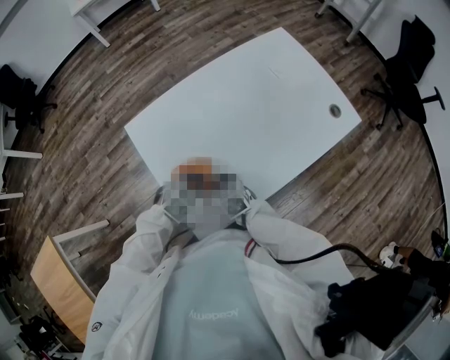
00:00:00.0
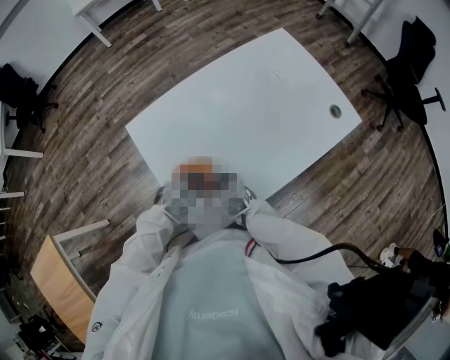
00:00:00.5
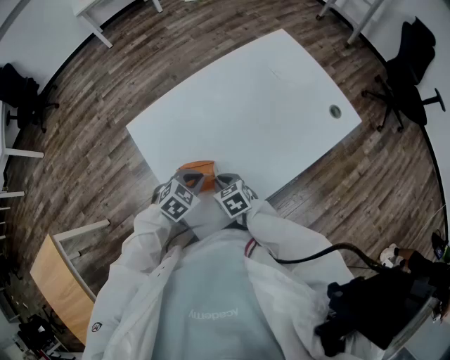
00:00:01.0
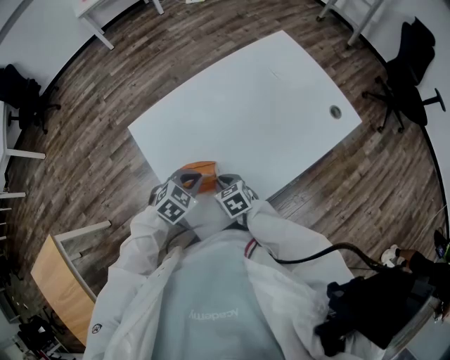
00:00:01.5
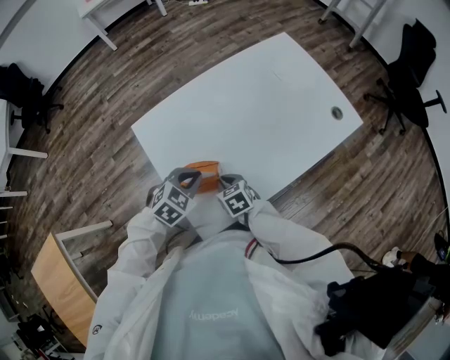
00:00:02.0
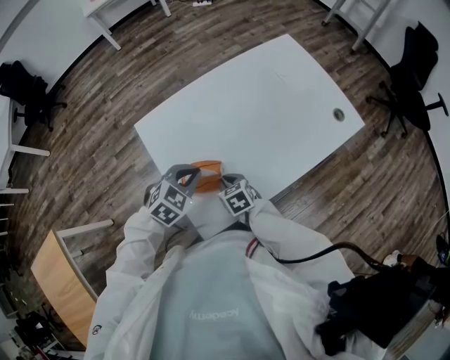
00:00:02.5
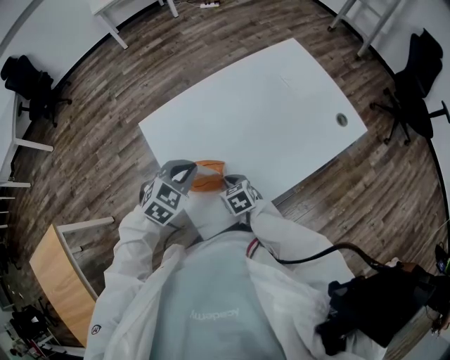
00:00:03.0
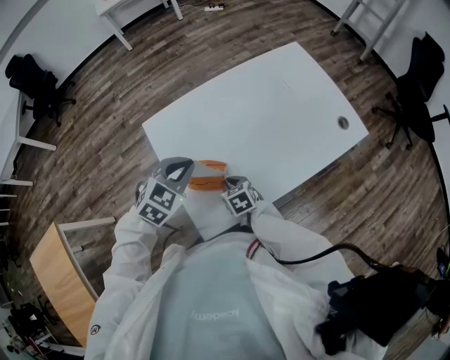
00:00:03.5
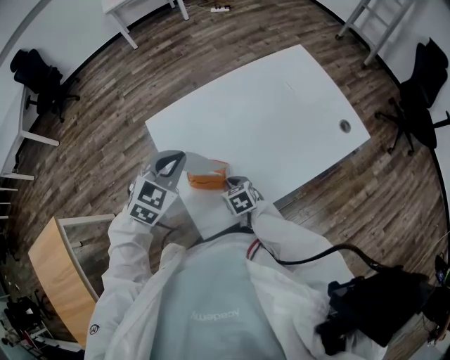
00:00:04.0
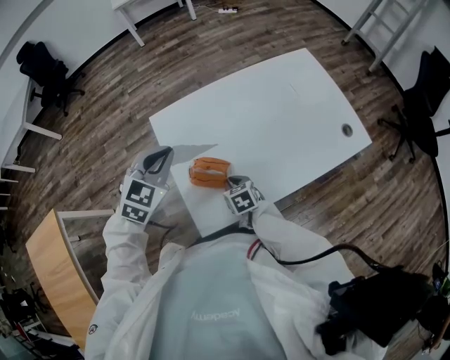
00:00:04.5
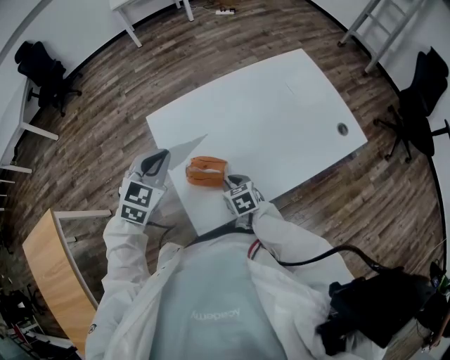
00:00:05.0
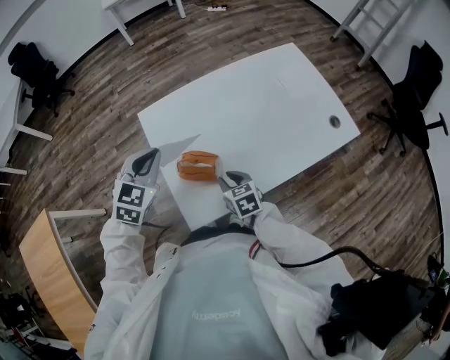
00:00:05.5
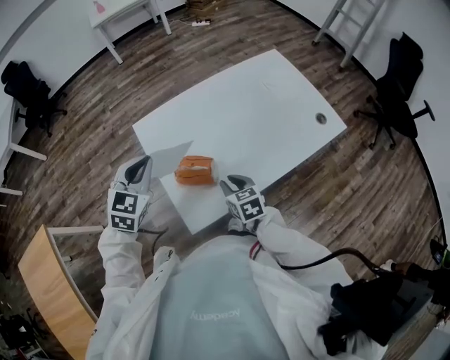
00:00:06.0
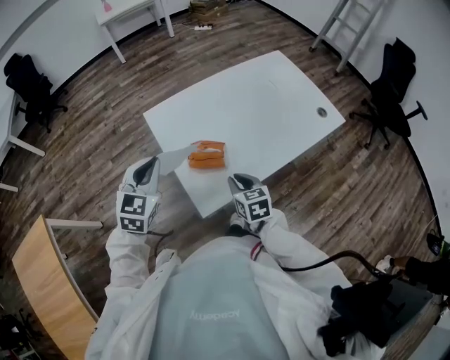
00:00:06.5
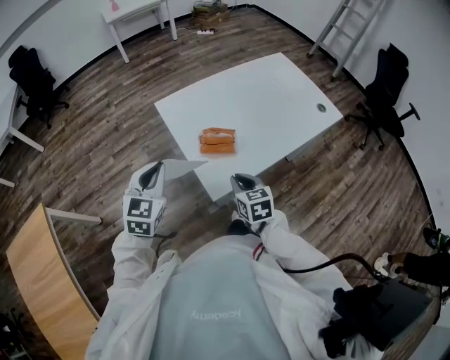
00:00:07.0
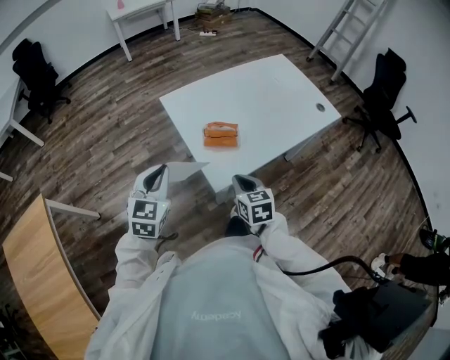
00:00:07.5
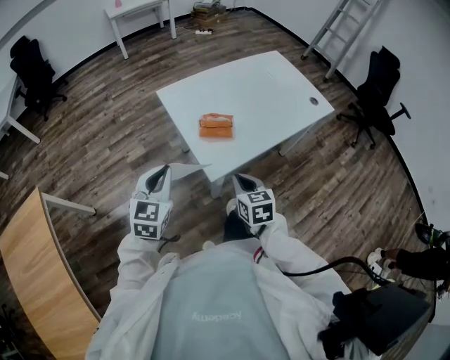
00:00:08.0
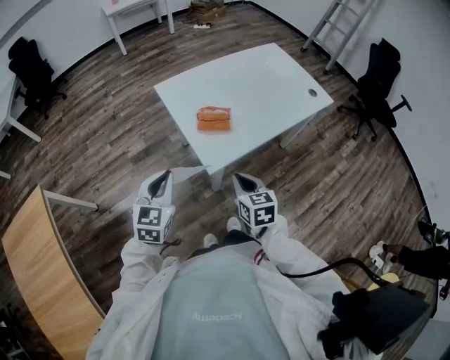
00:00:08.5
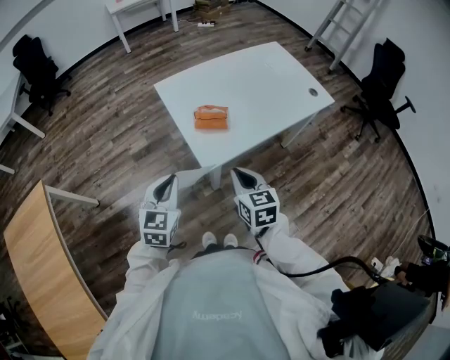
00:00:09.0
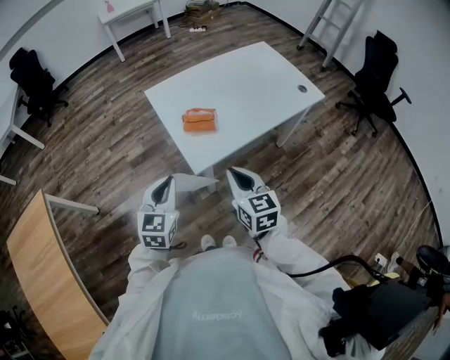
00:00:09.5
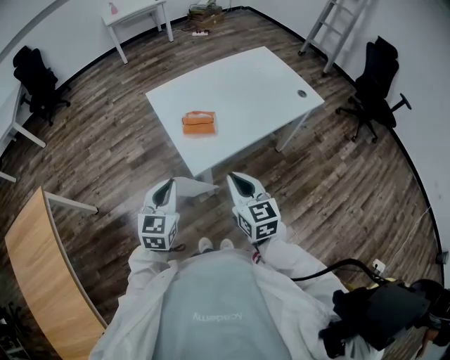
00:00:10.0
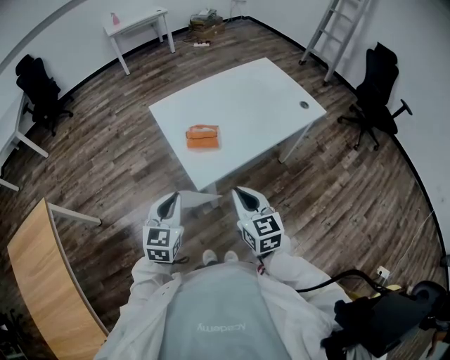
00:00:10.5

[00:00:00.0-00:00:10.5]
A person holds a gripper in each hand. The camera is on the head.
00:00:00.0 to 00:00:02.0: The left gripper heads upward, covering approximately 5 cm.
00:00:02.0 to 00:00:04.0: The left gripper is displaced upward by approximately 15 cm, and swivels roughly 20 degrees.
00:00:04.0 to 00:00:06.5: The right gripper moves upward and backward, roughly 10 cm; the left gripper is displaced to the left and backward by roughly 10 cm, and turns by some 20 degrees.
00:00:06.5 to 00:00:08.5: Both grippers move backward, approximately 15 cm.
00:00:08.5 to 00:00:10.5: The left gripper travels to the right by approximately 5 cm. Meanwhile the right gripper heads upward, covering about 5 cm.

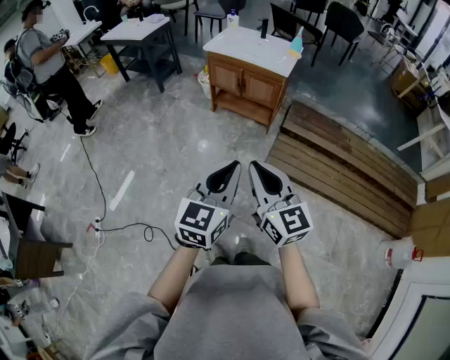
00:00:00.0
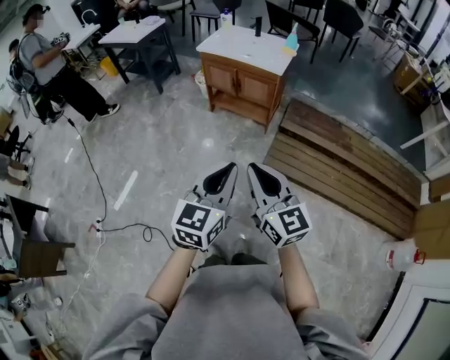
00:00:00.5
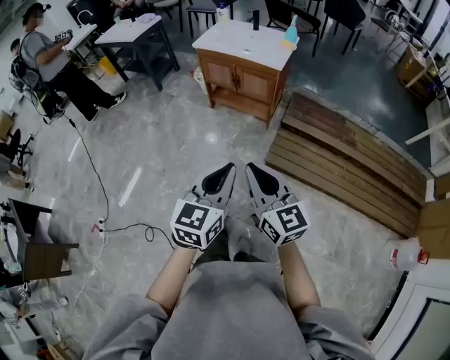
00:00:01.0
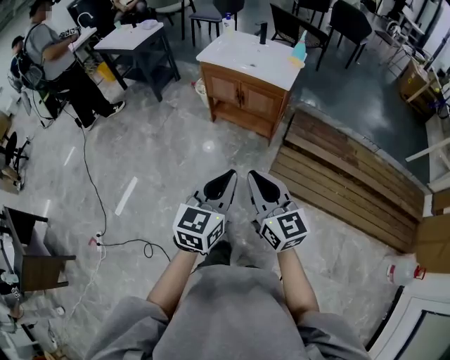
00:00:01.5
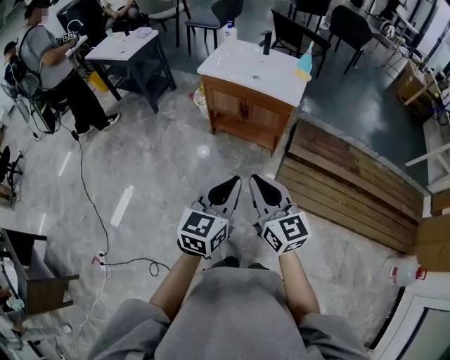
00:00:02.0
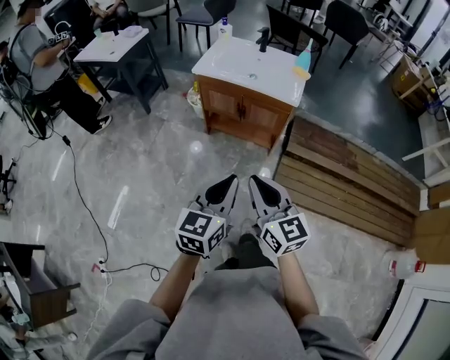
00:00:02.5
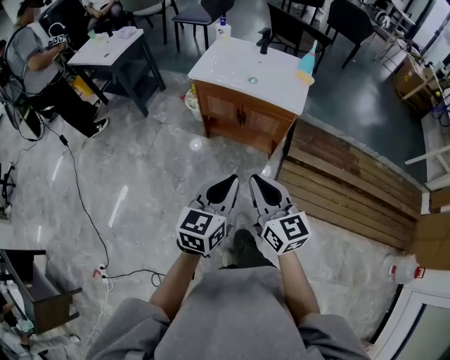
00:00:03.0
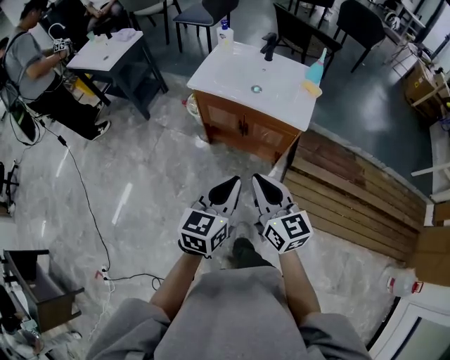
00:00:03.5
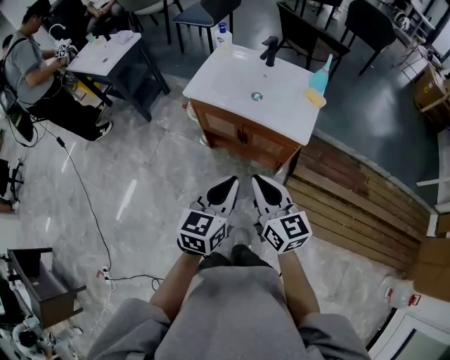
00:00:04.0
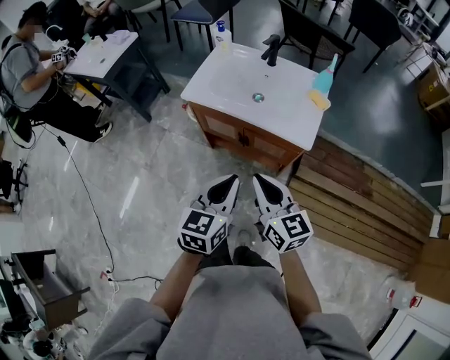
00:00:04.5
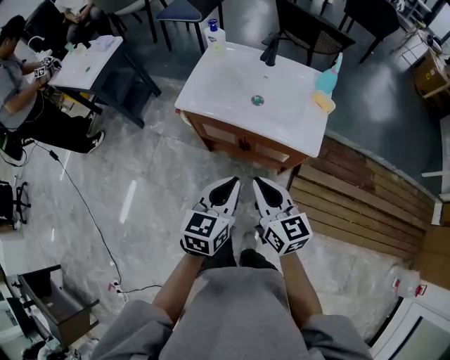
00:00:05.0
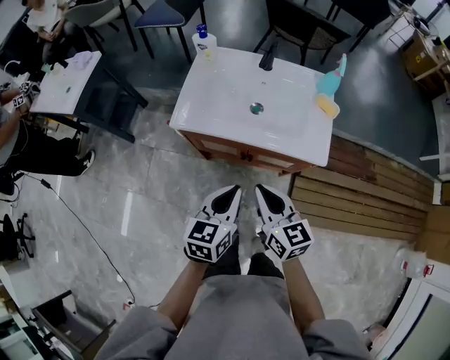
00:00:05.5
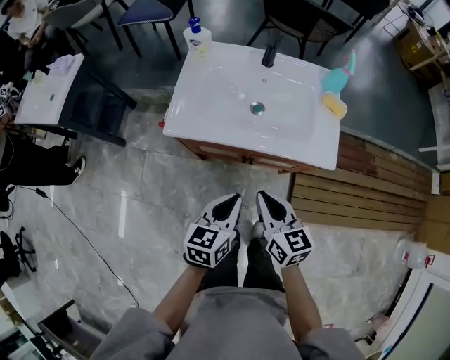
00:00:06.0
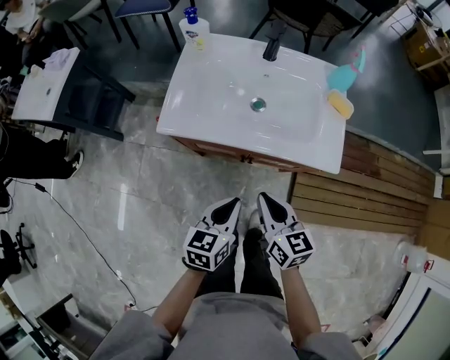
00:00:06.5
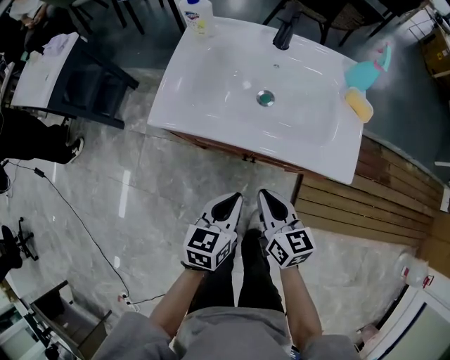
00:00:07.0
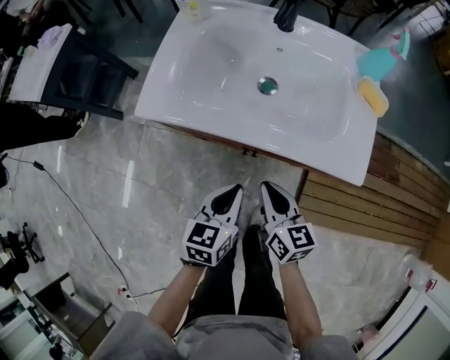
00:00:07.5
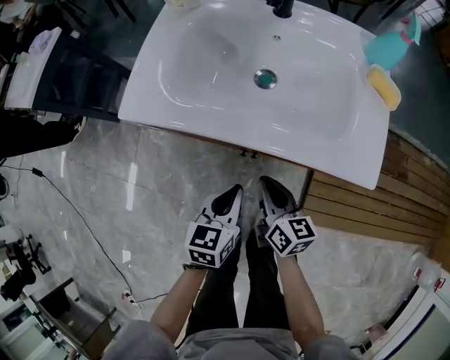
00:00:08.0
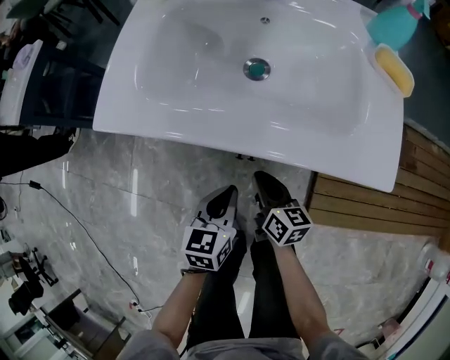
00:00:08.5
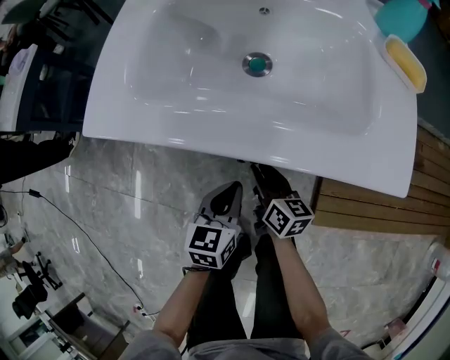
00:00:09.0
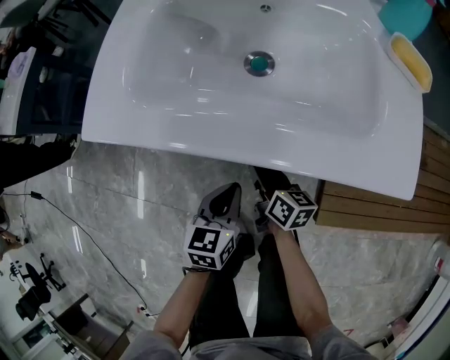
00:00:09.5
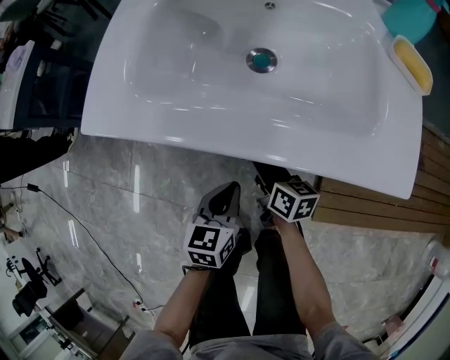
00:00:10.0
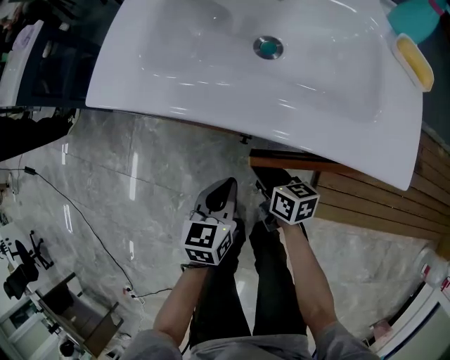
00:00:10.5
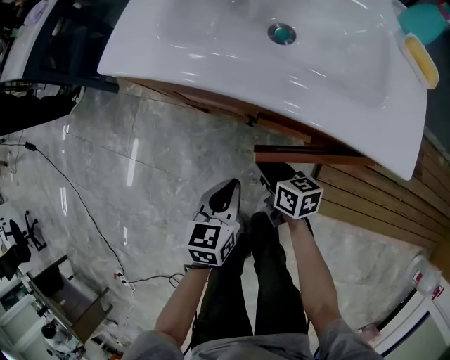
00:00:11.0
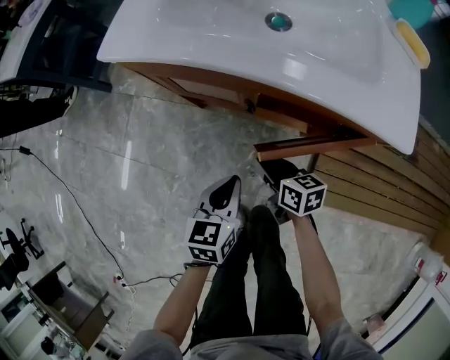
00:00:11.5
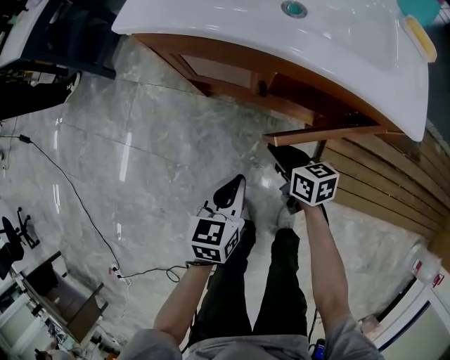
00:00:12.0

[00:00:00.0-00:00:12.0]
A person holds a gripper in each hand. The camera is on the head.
00:00:00.0 to 00:00:02.0: Both grippers move forward, about 25 cm.
00:00:02.0 to 00:00:04.0: Both grippers move forward, approximately 30 cm.
00:00:04.0 to 00:00:06.0: Both grippers move forward, downward and to the left, approximately 25 cm. The left gripper changes its angle by some 20 degrees. Meanwhile the right gripper swivels roughly 20 degrees.
00:00:06.0 to 00:00:08.0: The two grippers go approximately 20 cm downward.
00:00:08.0 to 00:00:10.0: Both grippers move downward, some 10 cm.
00:00:10.0 to 00:00:12.0: Both grippers travel together backward, approximately 15 cm. The right gripper swivels about 20 degrees.

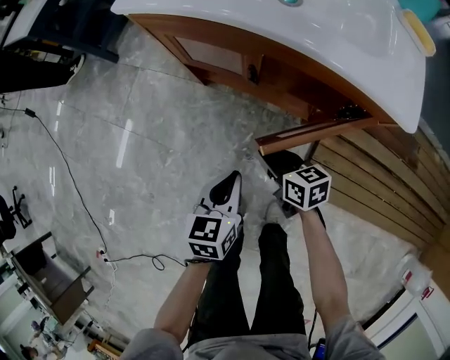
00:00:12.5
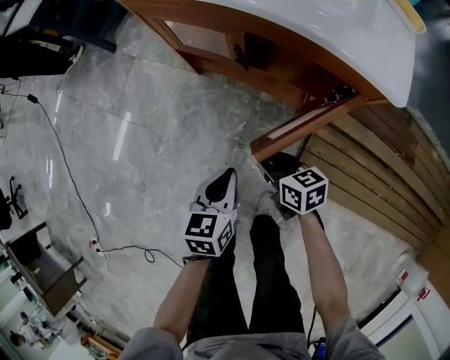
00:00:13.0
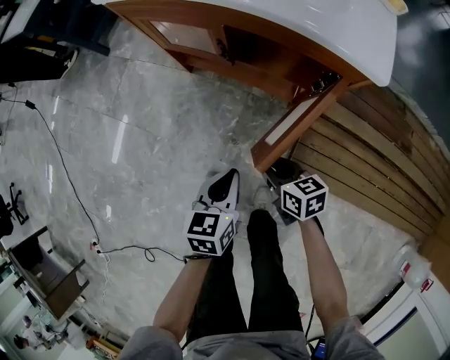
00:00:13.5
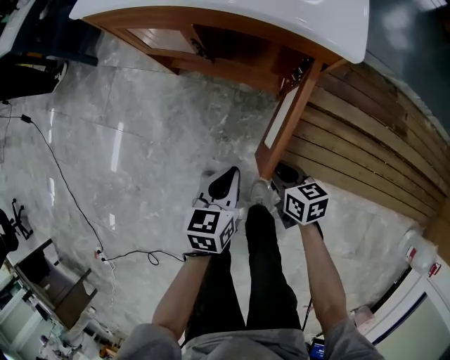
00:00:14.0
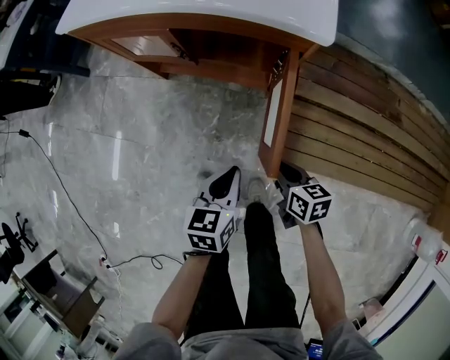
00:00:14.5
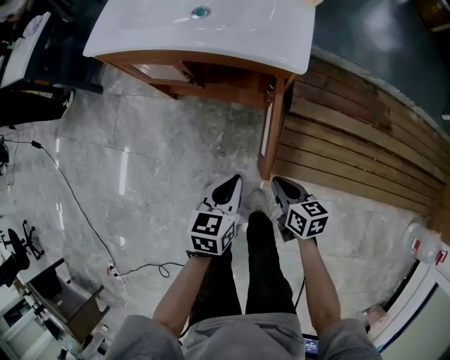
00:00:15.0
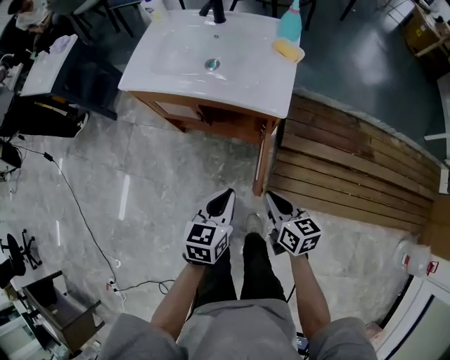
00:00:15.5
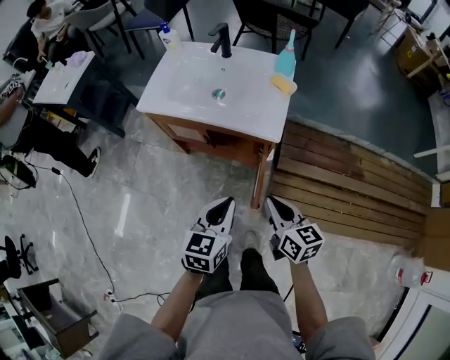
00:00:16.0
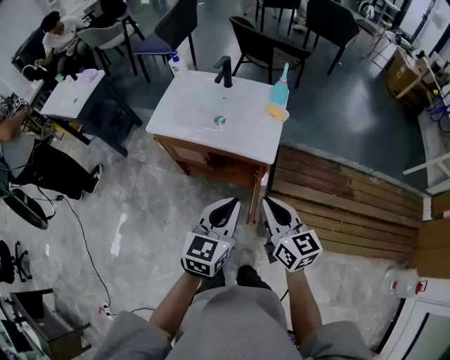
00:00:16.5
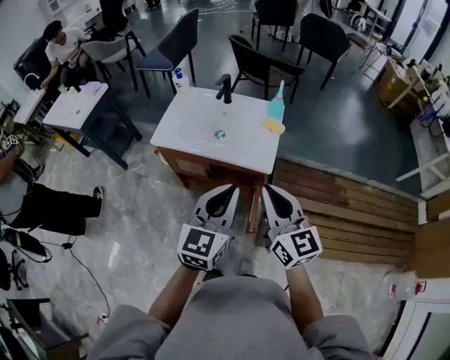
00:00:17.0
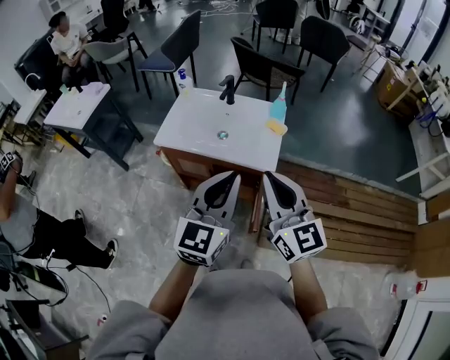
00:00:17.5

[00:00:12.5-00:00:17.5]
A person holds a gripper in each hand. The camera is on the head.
00:00:12.5 to 00:00:15.0: The right gripper travels backward, to the right and upward by approximately 25 cm, while the left gripper shifts approximately 20 cm to the right, backward and upward.
00:00:15.0 to 00:00:17.5: The grippers both shift upward by some 50 cm. The left gripper tips its fingers upward by about 40 degrees, while the right gripper points its fingers about 40 degrees further upward.
